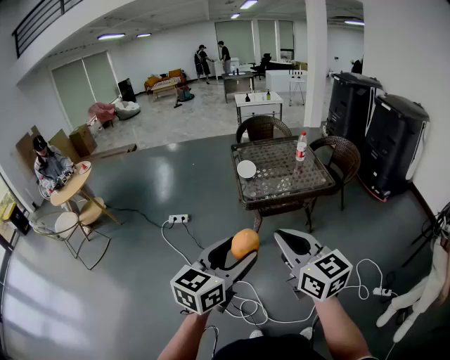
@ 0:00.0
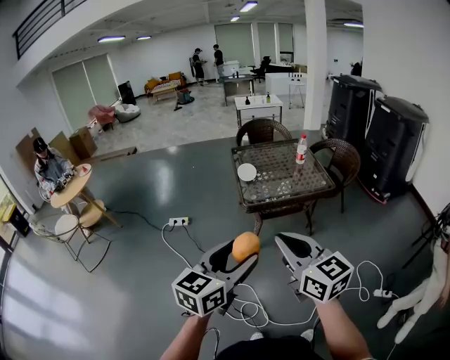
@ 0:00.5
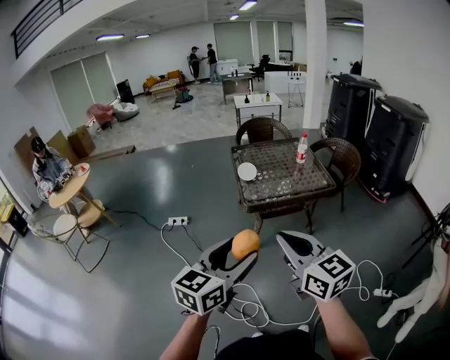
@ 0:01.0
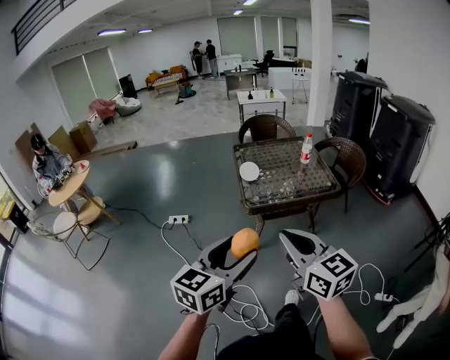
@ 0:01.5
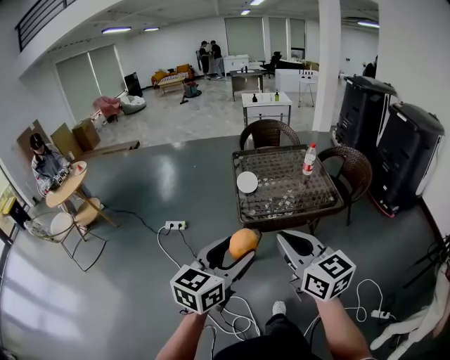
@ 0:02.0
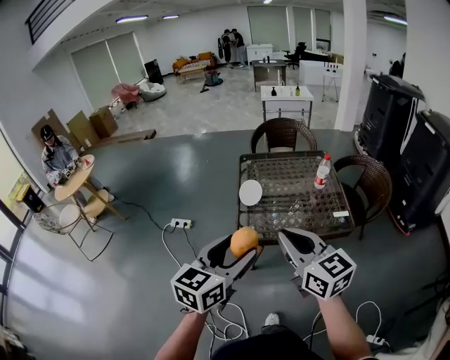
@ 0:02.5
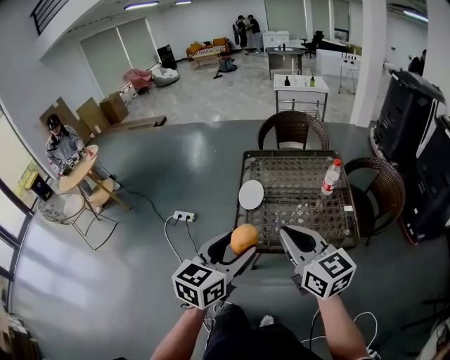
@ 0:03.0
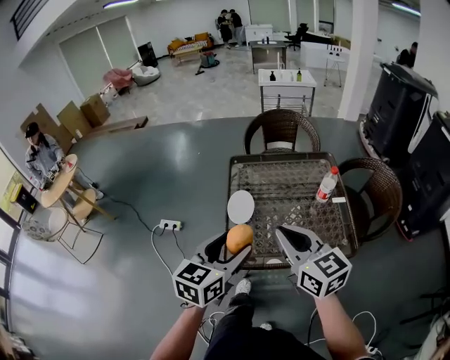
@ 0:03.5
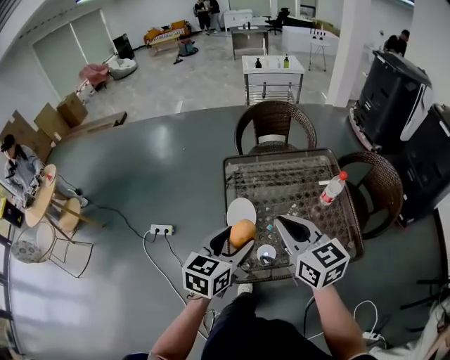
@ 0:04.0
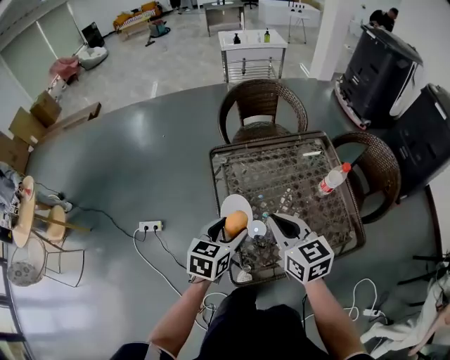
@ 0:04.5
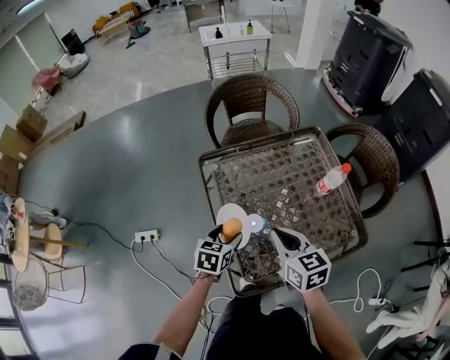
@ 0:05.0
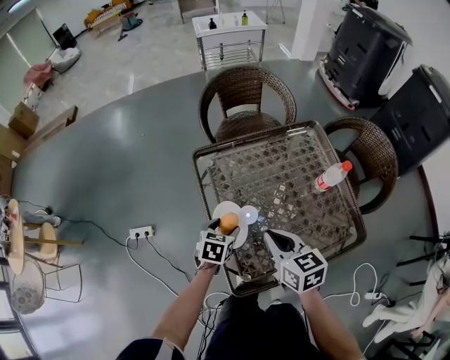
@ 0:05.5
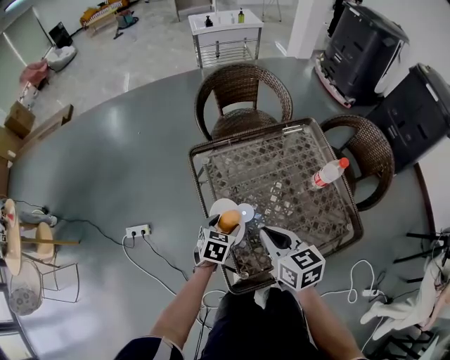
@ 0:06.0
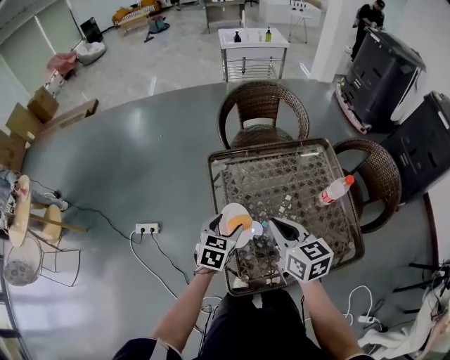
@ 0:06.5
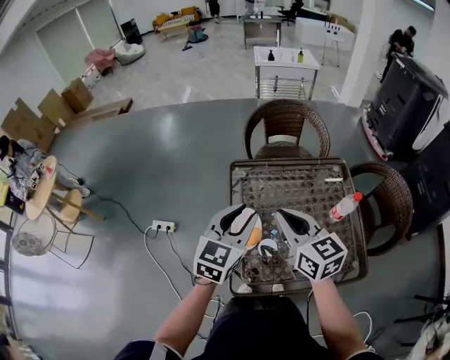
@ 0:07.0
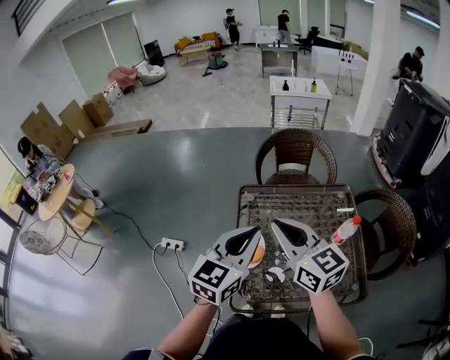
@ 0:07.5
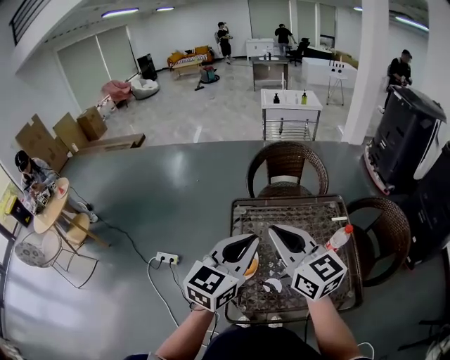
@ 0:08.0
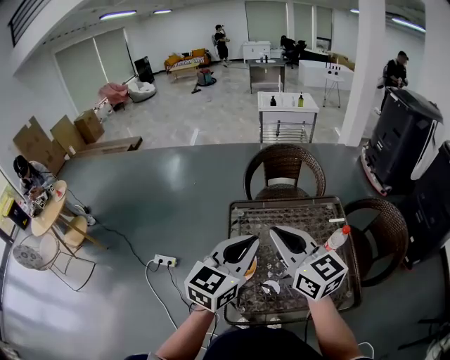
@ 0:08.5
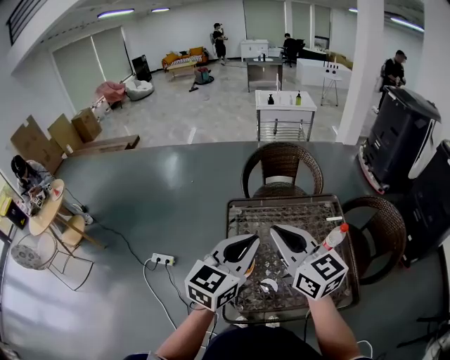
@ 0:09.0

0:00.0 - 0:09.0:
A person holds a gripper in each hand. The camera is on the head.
0:00.0 - 0:02.0: Both grippers travel together forward, some 15 cm.
0:02.0 - 0:04.5: The pair of grippers is taken forward, roughly 50 cm. The left gripper shifts approximately 20 cm downward, and changes its angle by approximately 20 degrees.
0:04.5 - 0:07.0: The left gripper shifts some 15 cm upward, changes its angle by about 20 degrees, and closes its fingers, while the right gripper goes approximately 5 cm upward.
0:07.0 - 0:09.0: The two grippers go approximately 10 cm upward. The left gripper closes.

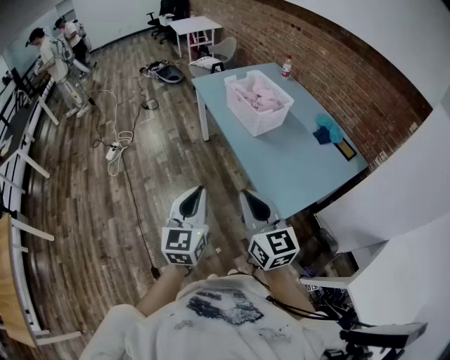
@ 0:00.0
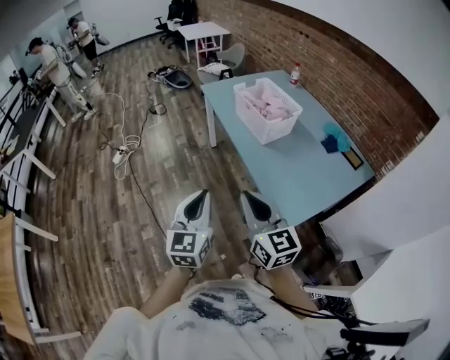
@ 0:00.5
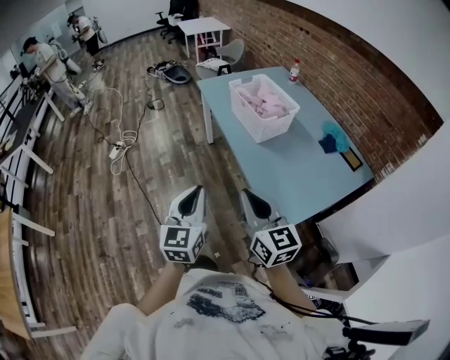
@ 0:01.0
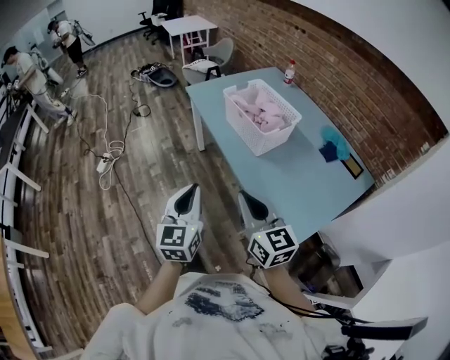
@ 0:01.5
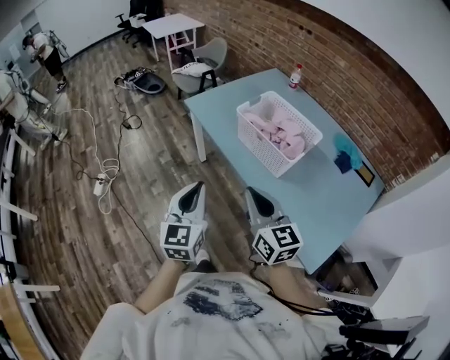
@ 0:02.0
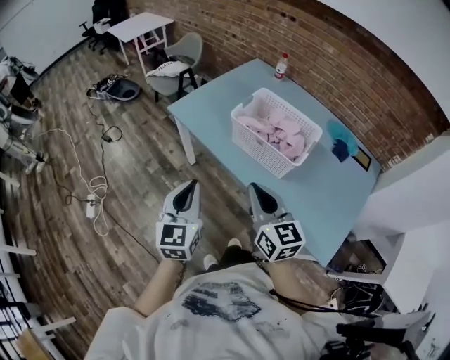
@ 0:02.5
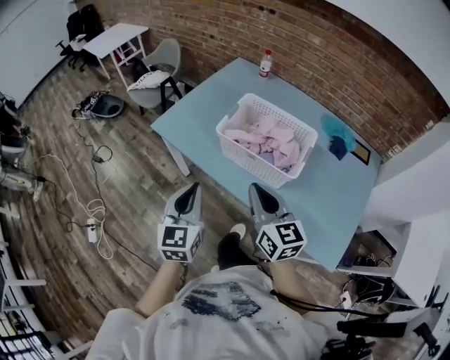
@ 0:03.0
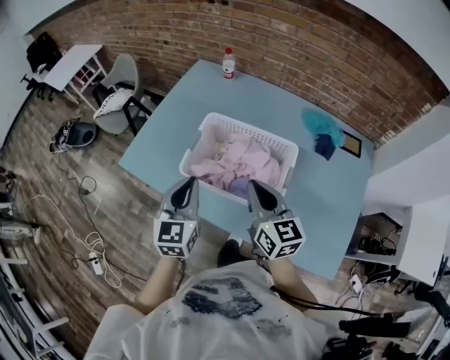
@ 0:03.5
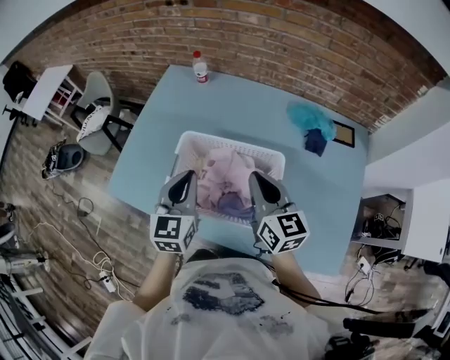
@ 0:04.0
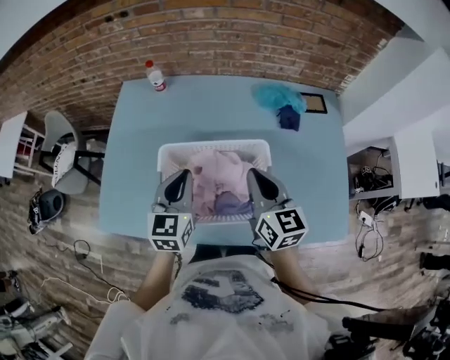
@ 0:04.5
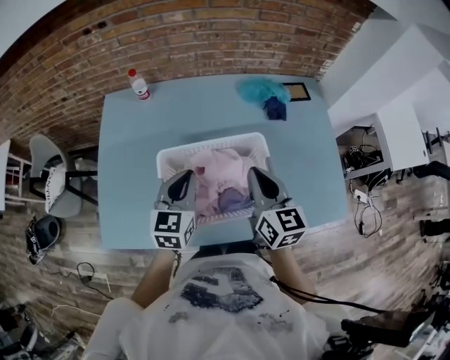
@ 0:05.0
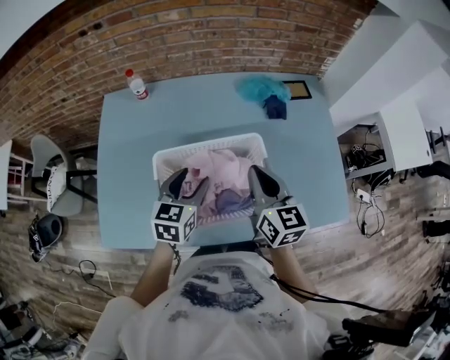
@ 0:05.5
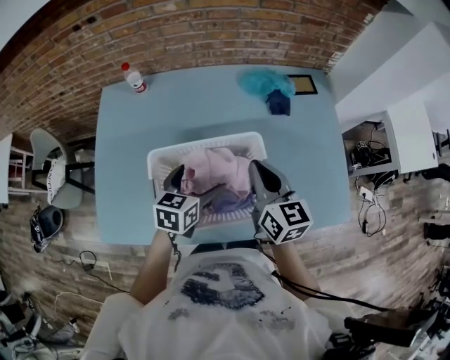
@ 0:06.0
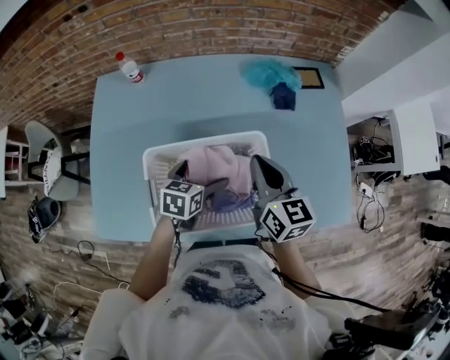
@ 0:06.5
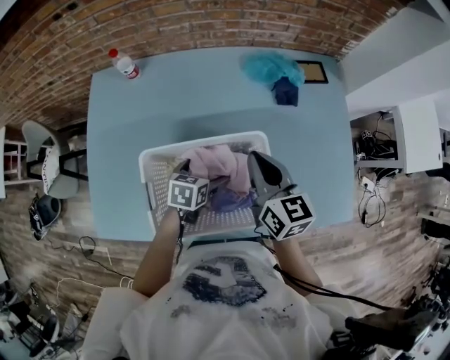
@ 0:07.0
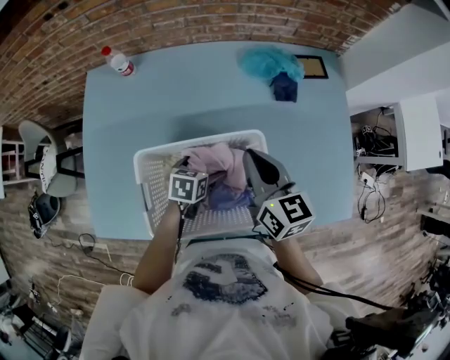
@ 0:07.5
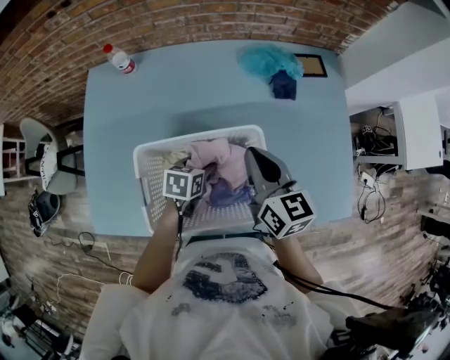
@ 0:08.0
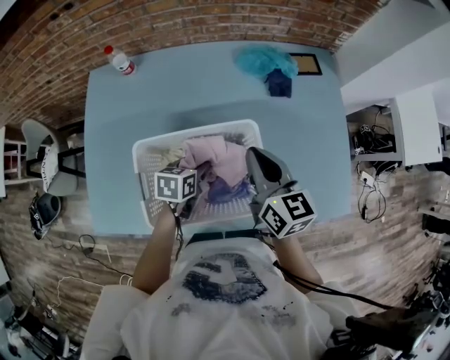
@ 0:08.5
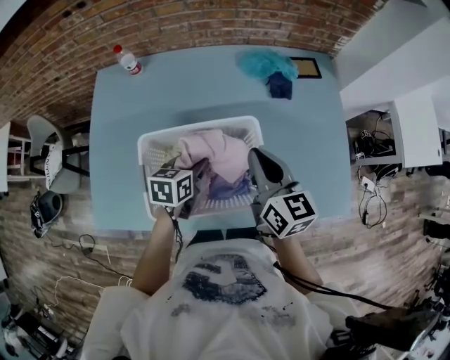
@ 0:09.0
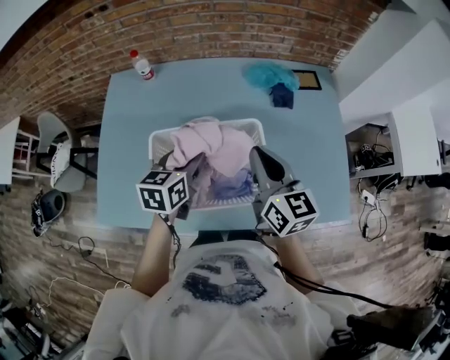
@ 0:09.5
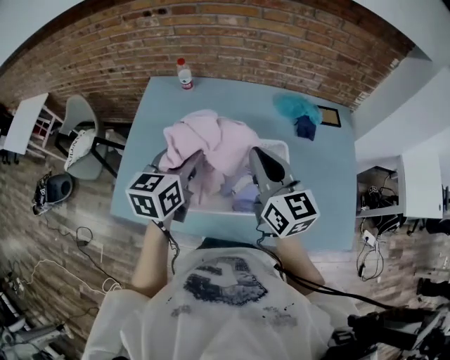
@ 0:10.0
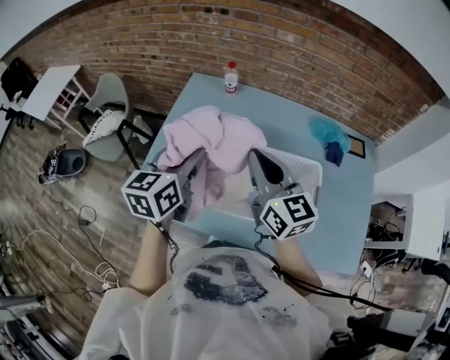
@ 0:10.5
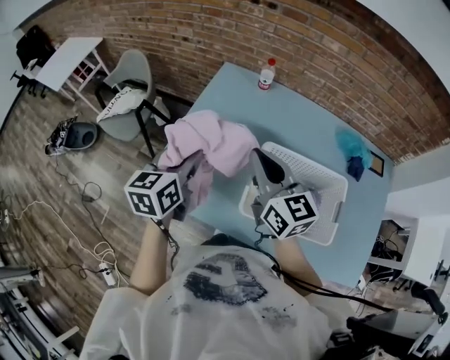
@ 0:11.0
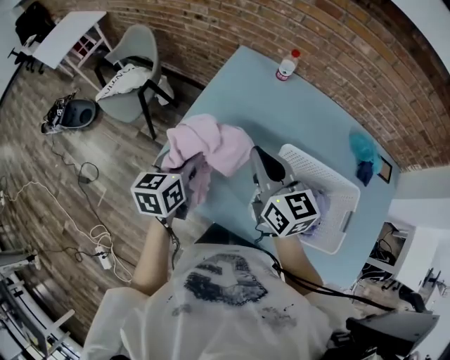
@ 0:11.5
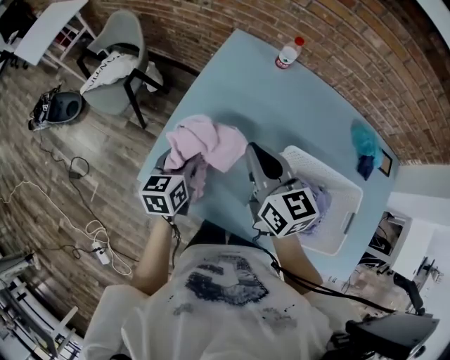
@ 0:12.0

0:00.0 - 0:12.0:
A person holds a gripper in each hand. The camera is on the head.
0:00.0 - 0:02.0: The two grippers go roughly 35 cm forward.
0:02.0 - 0:04.0: The two grippers travel together, about 50 cm. The right gripper changes its angle by roughly 40 degrees. The left gripper changes its angle by roughly 40 degrees.
0:04.0 - 0:06.0: The left gripper shifts roughly 10 cm downward, changes its angle by about 40 degrees, and opens its fingers, while the right gripper shifts by approximately 5 cm, and rotates approximately 20 degrees.
0:06.0 - 0:08.0: The left gripper travels downward by approximately 15 cm, swivels approximately 20 degrees, and closes its fingers, while the right gripper changes place by some 5 cm.
0:08.0 - 0:10.0: The left gripper moves upward and to the left, roughly 30 cm, and tilts its fingers some 30 degrees upward; the right gripper moves upward, to the left and backward, about 15 cm, and changes its angle by approximately 20 degrees.
0:10.0 - 0:12.0: The right gripper goes some 35 cm to the left and forward, and changes its angle by some 20 degrees; the left gripper moves to the left and downward, approximately 35 cm, and swivels roughly 30 degrees.

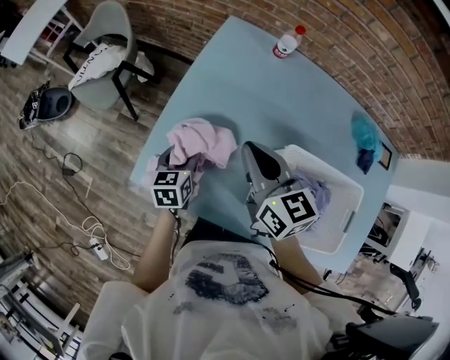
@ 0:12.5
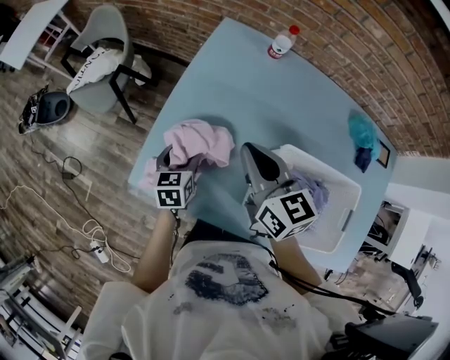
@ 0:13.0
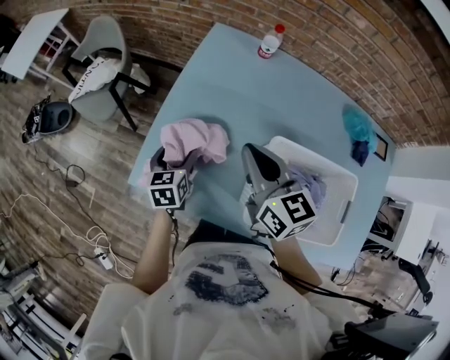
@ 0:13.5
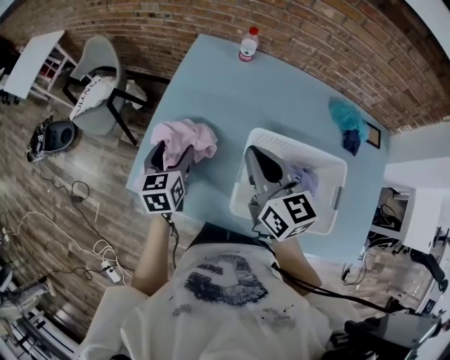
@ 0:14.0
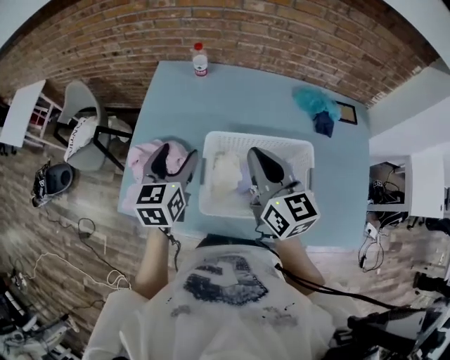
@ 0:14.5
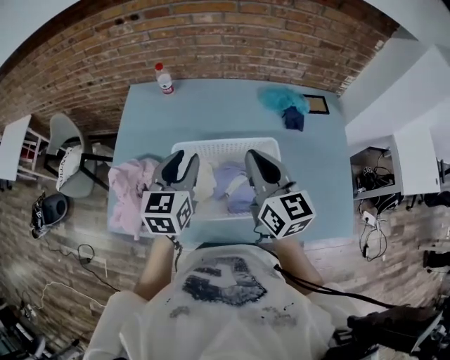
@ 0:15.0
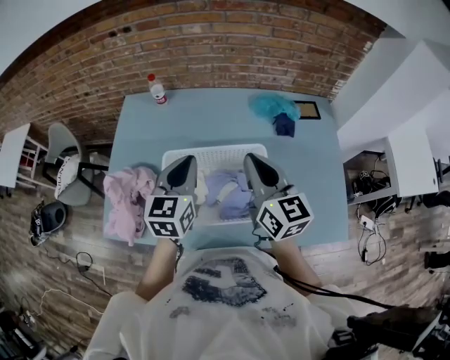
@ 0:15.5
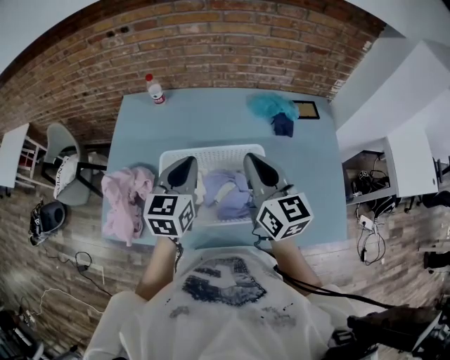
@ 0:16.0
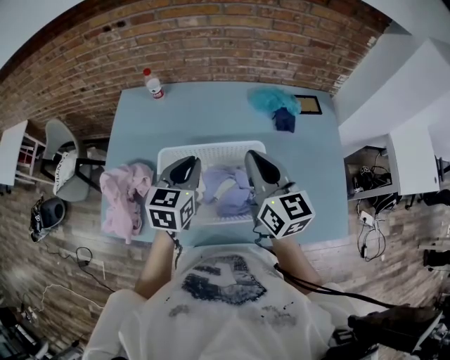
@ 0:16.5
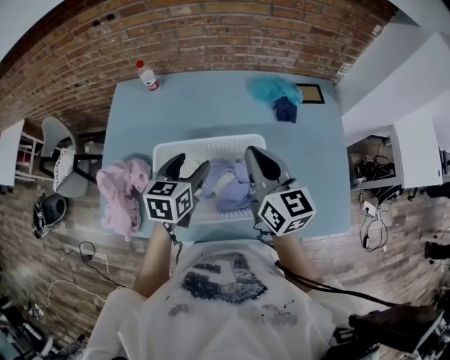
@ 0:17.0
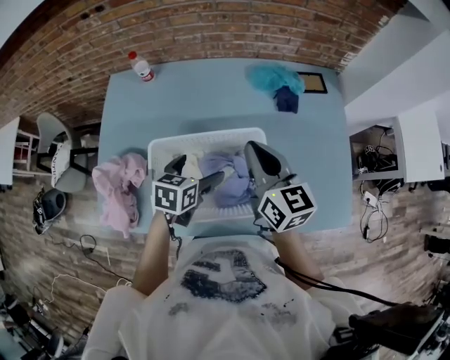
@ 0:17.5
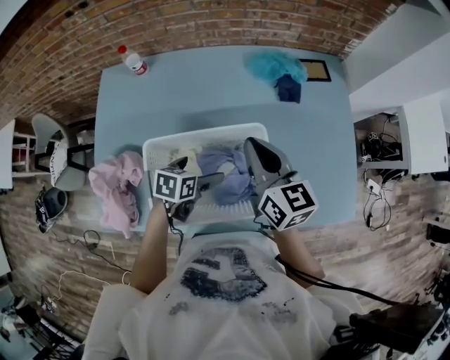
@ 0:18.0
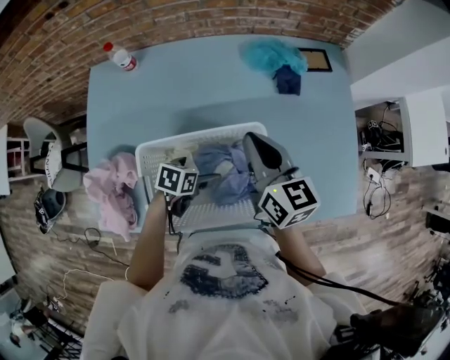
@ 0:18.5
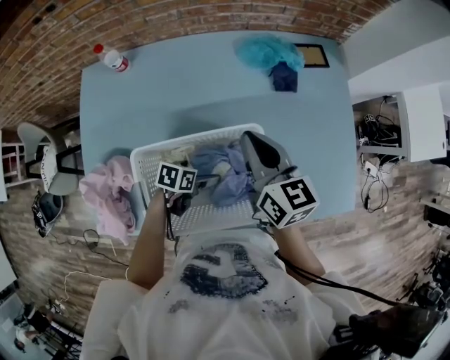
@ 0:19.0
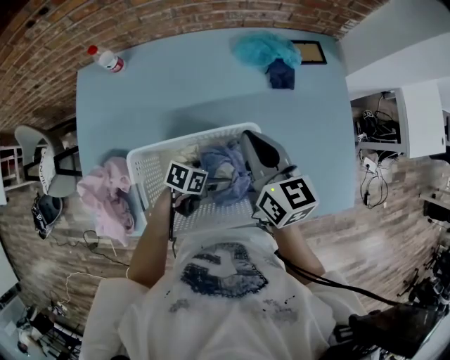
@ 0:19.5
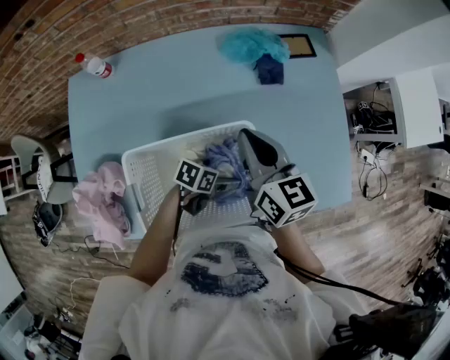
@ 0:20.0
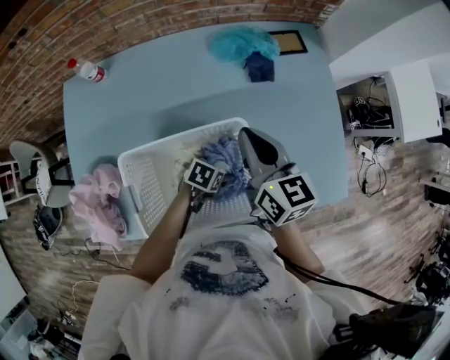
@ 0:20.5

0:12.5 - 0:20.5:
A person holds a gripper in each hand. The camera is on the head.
0:12.5 - 0:14.5: The right gripper shifts some 25 cm to the right and backward, and turns by about 20 degrees; the left gripper is displaced upward and to the right by approximately 30 cm, and swivels approximately 20 degrees.
0:14.5 - 0:16.5: Both grippers travel together to the right, approximately 20 cm. The left gripper closes.
0:16.5 - 0:18.5: The right gripper moves downward and forward, approximately 10 cm. Meanwhile the left gripper heads downward, covering roughly 25 cm, swivels some 50 degrees, and opens its fingers.
0:18.5 - 0:20.5: The right gripper shifts about 5 cm to the right, while the left gripper is displaced to the right by roughly 15 cm.
